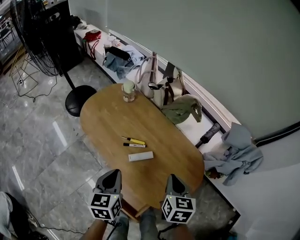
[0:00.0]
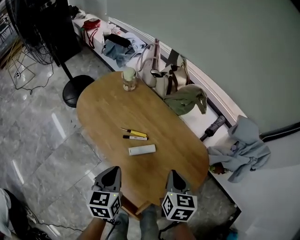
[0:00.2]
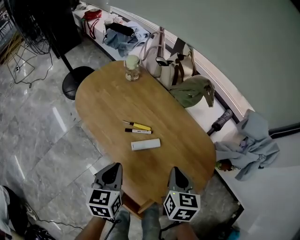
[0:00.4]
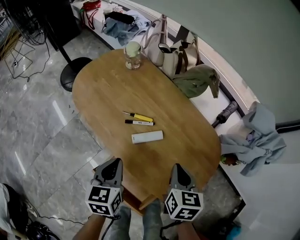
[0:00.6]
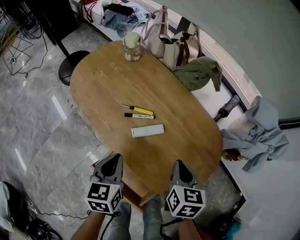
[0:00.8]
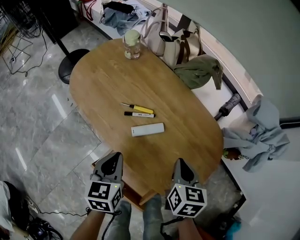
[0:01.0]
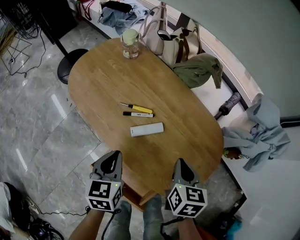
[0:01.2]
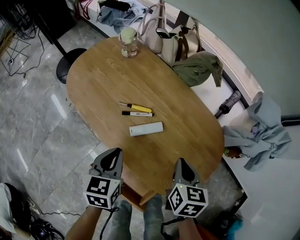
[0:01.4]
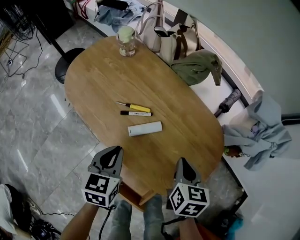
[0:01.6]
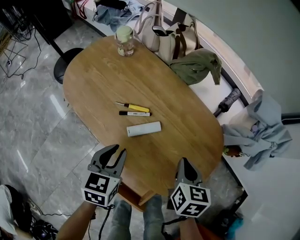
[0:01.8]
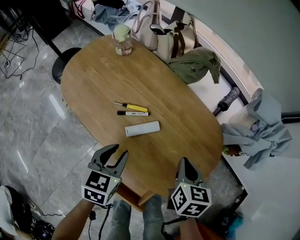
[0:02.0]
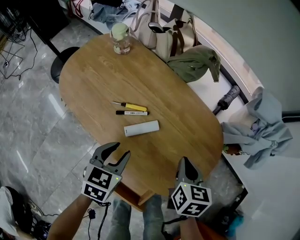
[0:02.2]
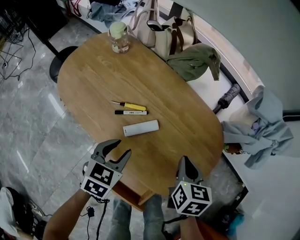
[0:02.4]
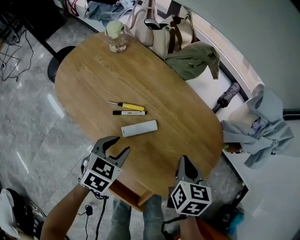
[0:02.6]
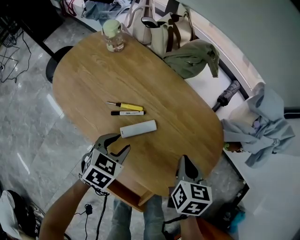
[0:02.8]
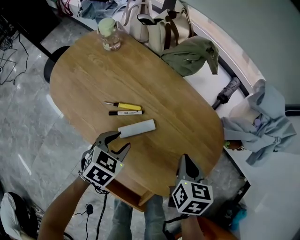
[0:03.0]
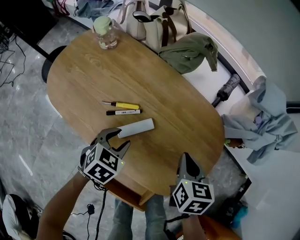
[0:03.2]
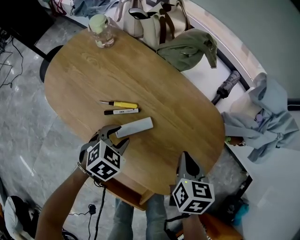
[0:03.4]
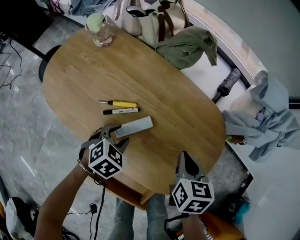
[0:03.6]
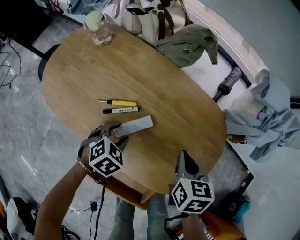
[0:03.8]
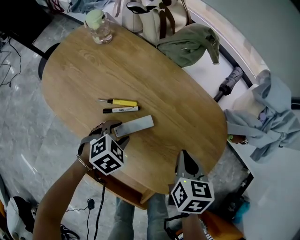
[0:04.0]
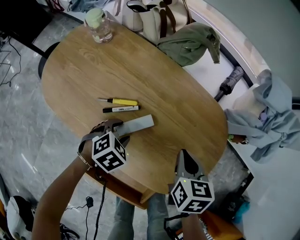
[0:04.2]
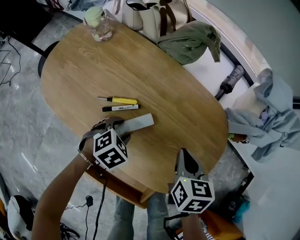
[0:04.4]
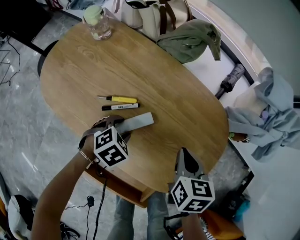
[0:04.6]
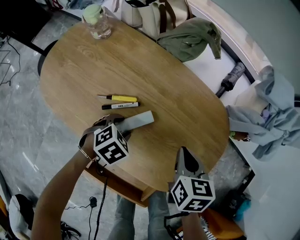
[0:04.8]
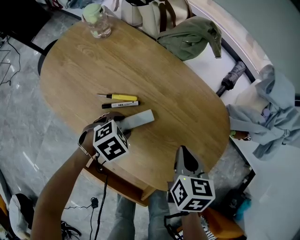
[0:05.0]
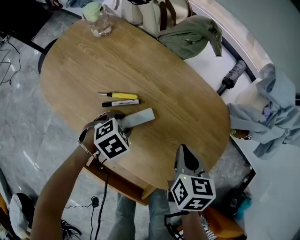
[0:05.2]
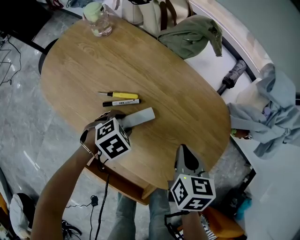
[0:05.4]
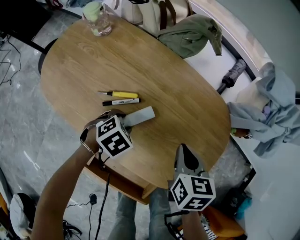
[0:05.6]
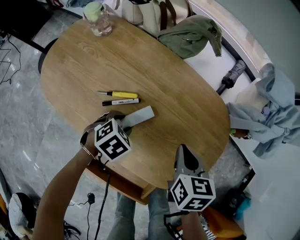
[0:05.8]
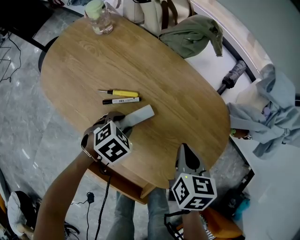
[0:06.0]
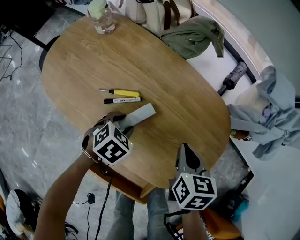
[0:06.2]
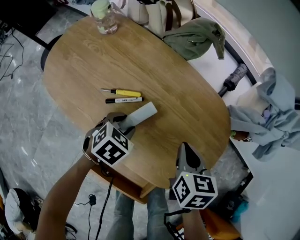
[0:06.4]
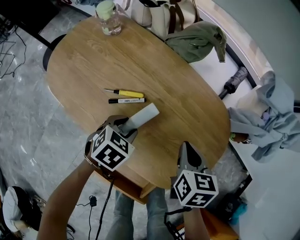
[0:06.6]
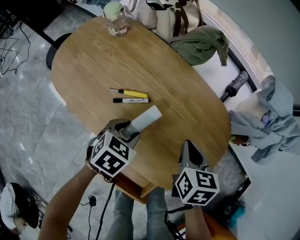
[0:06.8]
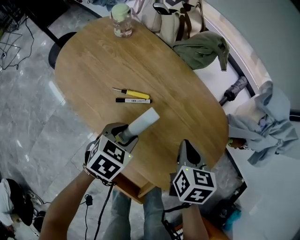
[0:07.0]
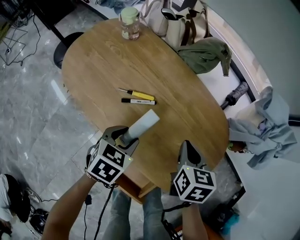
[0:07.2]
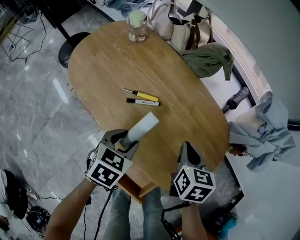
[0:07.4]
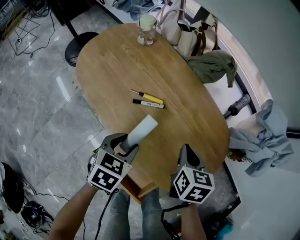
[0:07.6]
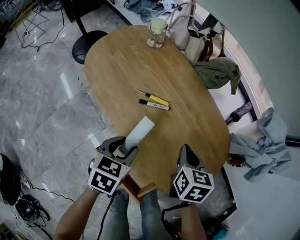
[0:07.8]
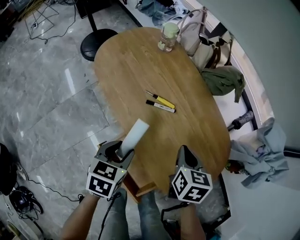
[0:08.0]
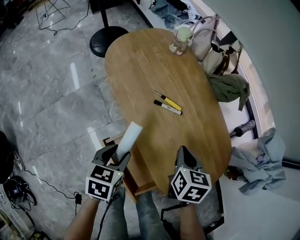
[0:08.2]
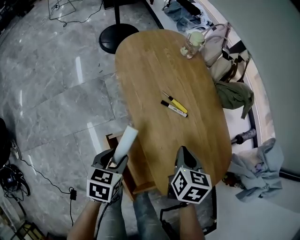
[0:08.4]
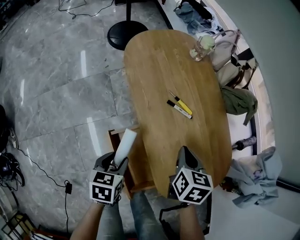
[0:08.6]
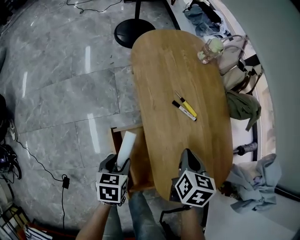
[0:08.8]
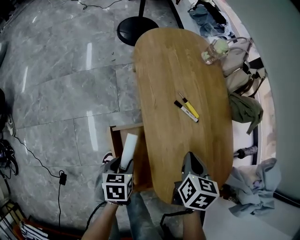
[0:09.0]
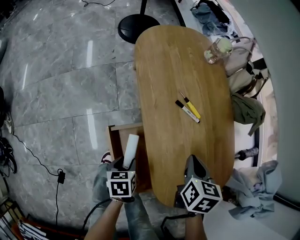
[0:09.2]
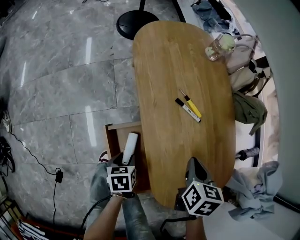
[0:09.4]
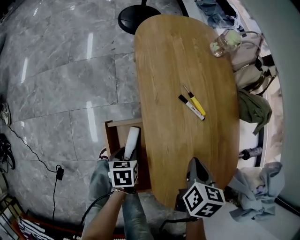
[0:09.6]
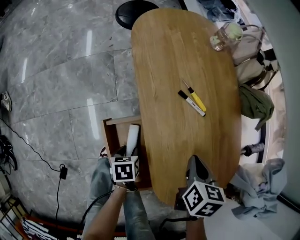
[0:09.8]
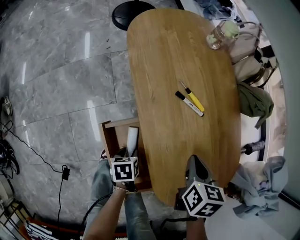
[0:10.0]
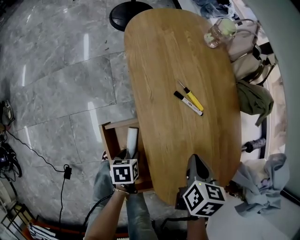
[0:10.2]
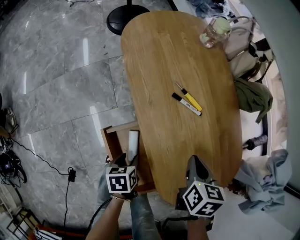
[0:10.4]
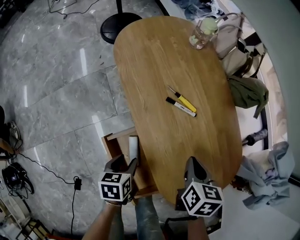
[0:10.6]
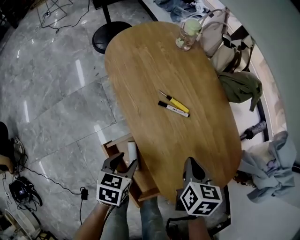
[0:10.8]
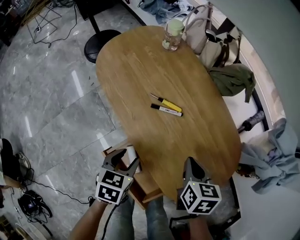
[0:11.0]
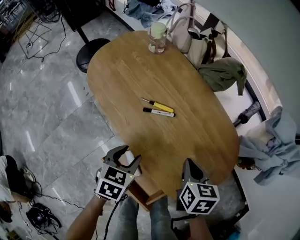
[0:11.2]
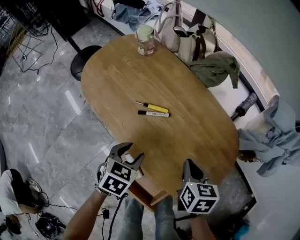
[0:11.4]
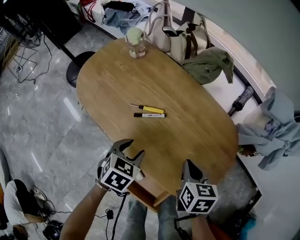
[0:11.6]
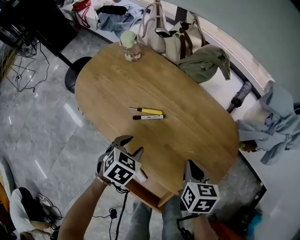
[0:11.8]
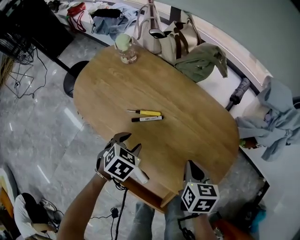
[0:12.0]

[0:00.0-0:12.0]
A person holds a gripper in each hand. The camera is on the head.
0:00.0 to 0:01.6: Both grippers move downward, about 15 cm.
0:01.6 to 0:03.0: The left gripper heads downward and forward, covering approximately 10 cm, changes its angle by about 30 degrees, and opens its fingers.
0:03.0 to 0:04.4: The left gripper travels downward by approximately 5 cm, and swivels approximately 30 degrees.
0:04.4 to 0:06.0: The grippers move only a little.
0:06.0 to 0:07.6: The right gripper moves approximately 5 cm; the left gripper heads upward and backward, covering approximately 15 cm, and rotates approximately 40 degrees.
0:07.6 to 0:09.0: The left gripper ends up some 20 cm from where it was, and rotates around the line of its fingers by some 50 degrees, counterclockwise from behind; the right gripper changes place by approximately 10 cm, and rotates approximately 30 degrees.
0:09.0 to 0:10.4: The left gripper goes some 5 cm downward.
0:10.4 to 0:12.0: The left gripper ends up some 25 cm from where it was, and twists some 80 degrees clockwise, seen from behind; the right gripper ends up approximately 5 cm from where it was, and turns by approximately 30 degrees.

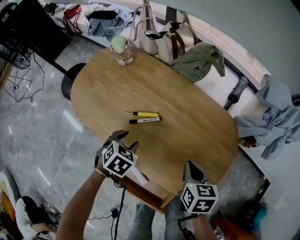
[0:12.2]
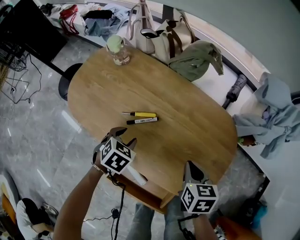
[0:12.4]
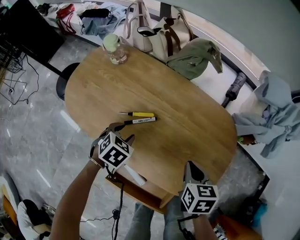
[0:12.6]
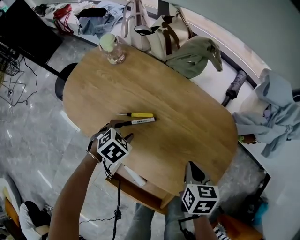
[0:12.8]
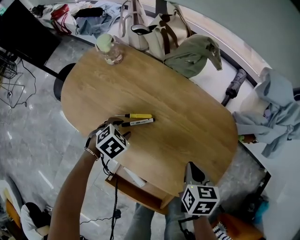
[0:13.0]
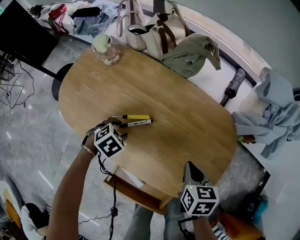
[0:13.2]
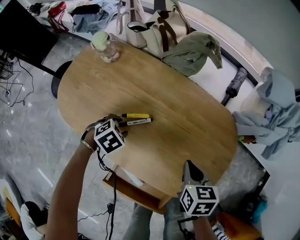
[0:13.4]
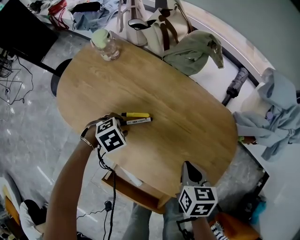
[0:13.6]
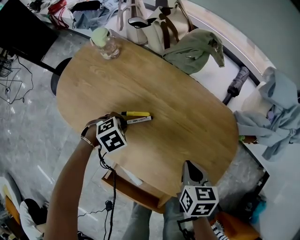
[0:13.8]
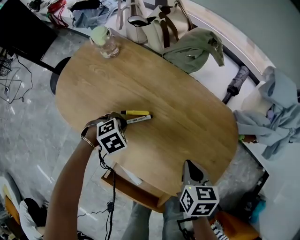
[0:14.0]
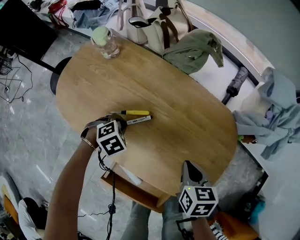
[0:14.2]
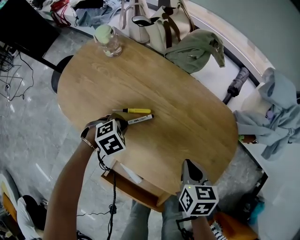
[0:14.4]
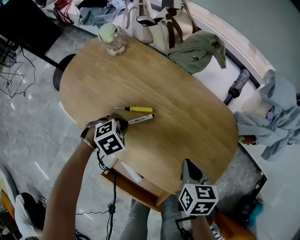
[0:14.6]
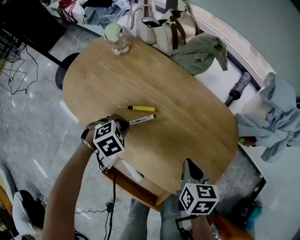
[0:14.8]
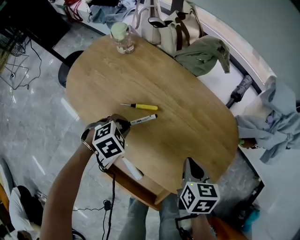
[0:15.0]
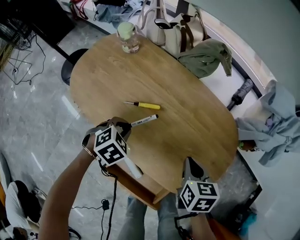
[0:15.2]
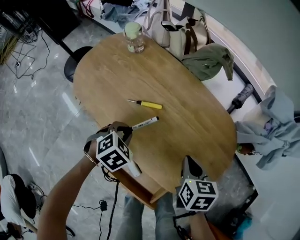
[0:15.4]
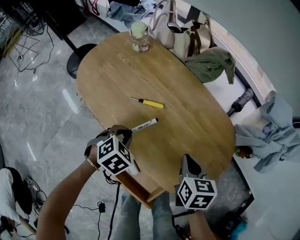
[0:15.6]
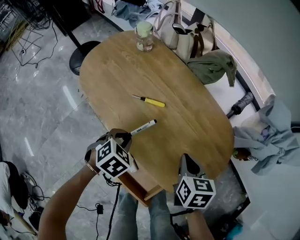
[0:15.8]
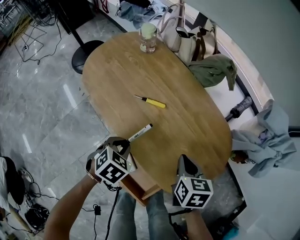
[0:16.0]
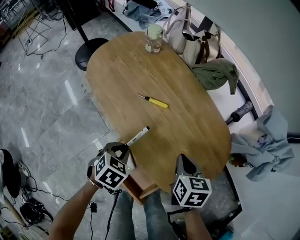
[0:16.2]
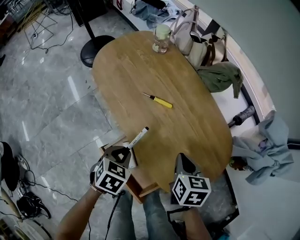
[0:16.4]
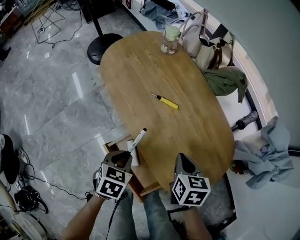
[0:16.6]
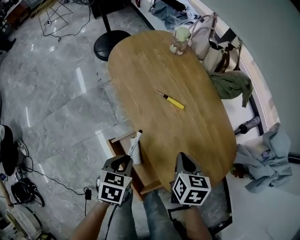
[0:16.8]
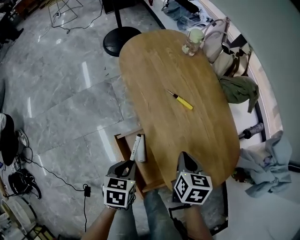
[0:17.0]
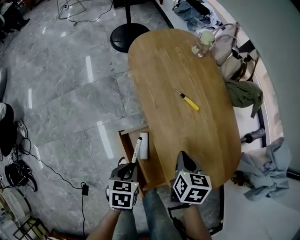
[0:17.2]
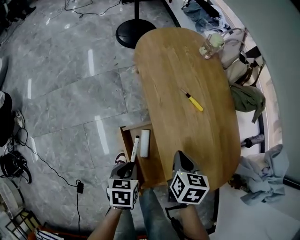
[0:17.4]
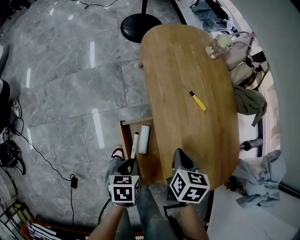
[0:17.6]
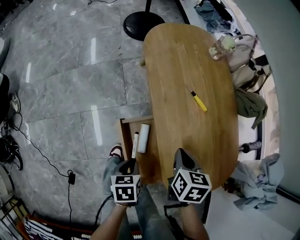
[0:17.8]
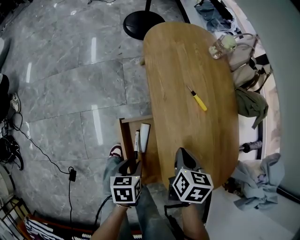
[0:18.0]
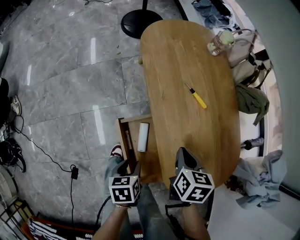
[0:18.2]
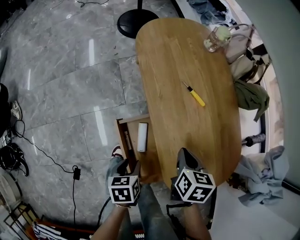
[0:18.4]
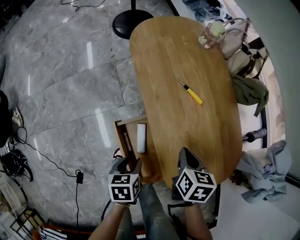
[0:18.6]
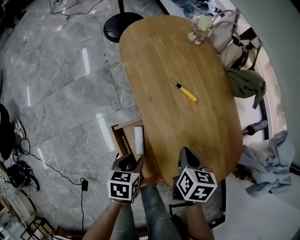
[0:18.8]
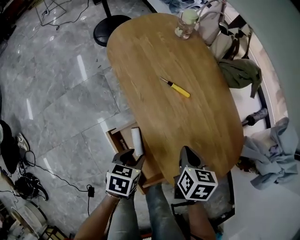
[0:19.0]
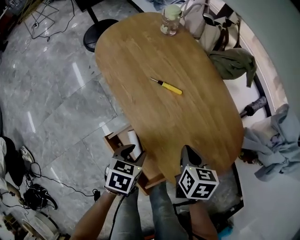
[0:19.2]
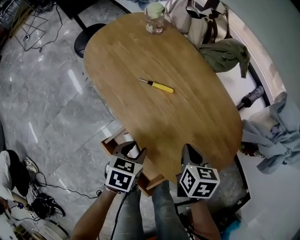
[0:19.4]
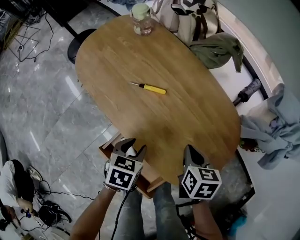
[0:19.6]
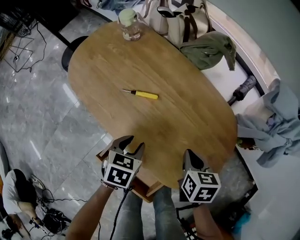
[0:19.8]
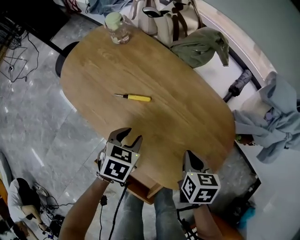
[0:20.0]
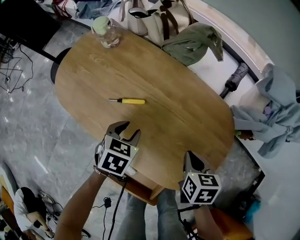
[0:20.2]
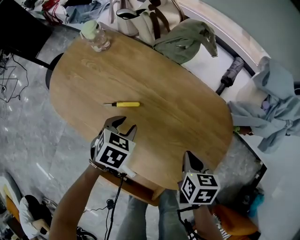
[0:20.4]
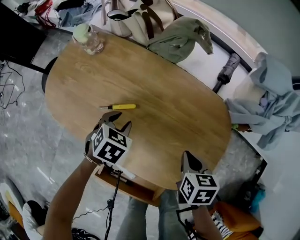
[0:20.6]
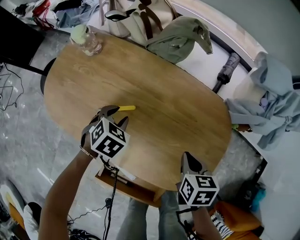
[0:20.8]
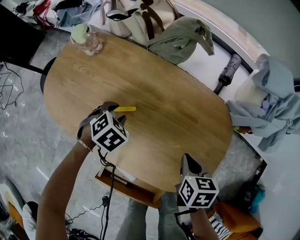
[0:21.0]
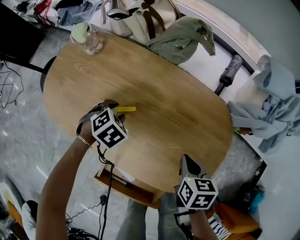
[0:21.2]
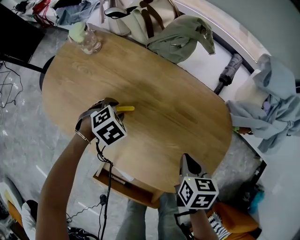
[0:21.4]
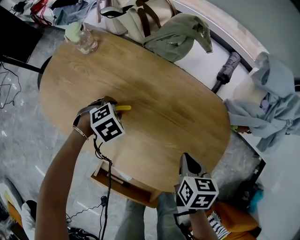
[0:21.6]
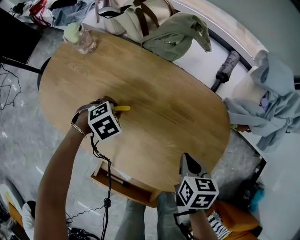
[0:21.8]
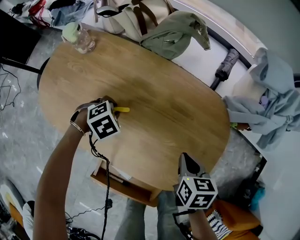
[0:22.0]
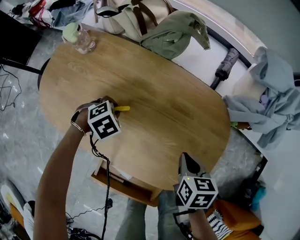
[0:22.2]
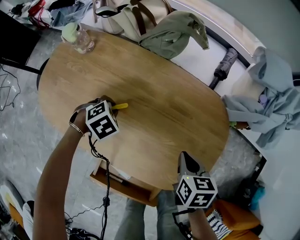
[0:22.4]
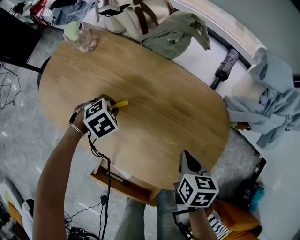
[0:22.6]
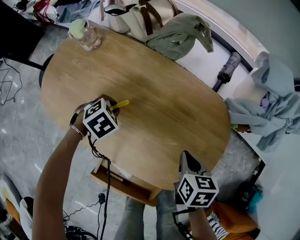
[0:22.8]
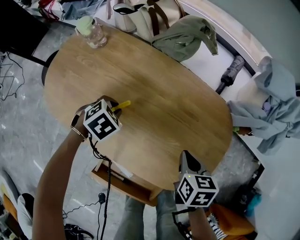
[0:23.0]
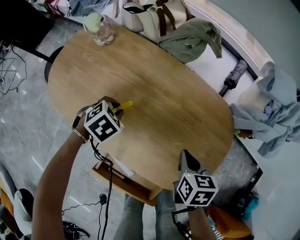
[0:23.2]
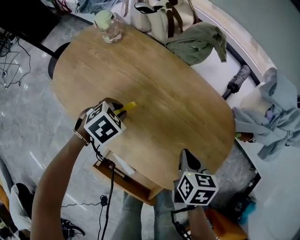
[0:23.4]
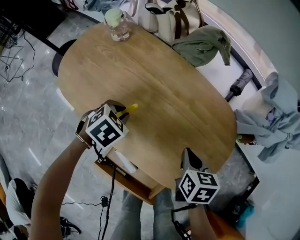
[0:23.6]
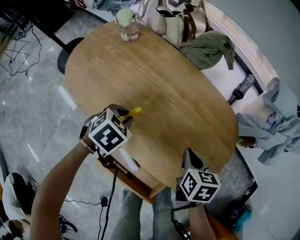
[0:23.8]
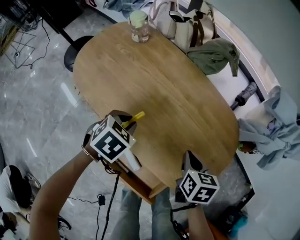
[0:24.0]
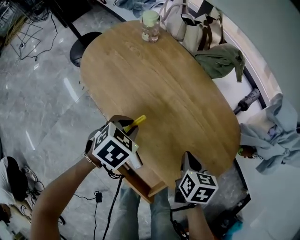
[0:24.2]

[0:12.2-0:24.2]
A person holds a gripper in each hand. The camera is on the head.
0:12.2 to 0:13.8: The left gripper travels downward by some 5 cm, swivels about 30 degrees, and closes.
0:13.8 to 0:15.2: The left gripper changes place by some 10 cm.
0:15.2 to 0:16.6: The right gripper shifts some 5 cm to the left; the left gripper is displaced backward by some 20 cm, and rotates around the line of its fingers by about 50 degrees, counterclockwise from behind.
0:16.6 to 0:18.2: The right gripper heads to the left, covering approximately 5 cm; the left gripper heads backward and downward, covering approximately 15 cm, rolls counterclockwise, seen from behind, by approximately 50 degrees, and opens its fingers.
0:18.2 to 0:19.8: The left gripper moves some 20 cm, and rolls clockwise, seen from behind, by approximately 60 degrees, while the right gripper changes place by some 15 cm, and changes its angle by approximately 30 degrees.
0:19.8 to 0:21.2: The left gripper shifts by roughly 20 cm, and twists approximately 50 degrees clockwise, seen from behind.
0:21.2 to 0:22.6: The left gripper closes up.
0:22.6 to 0:24.2: The right gripper ends up some 10 cm from where it was. The left gripper changes place by approximately 15 cm, and swivels about 40 degrees.
